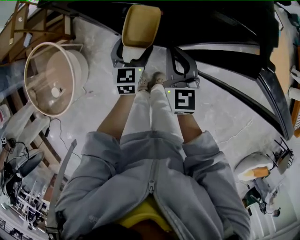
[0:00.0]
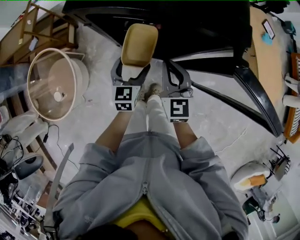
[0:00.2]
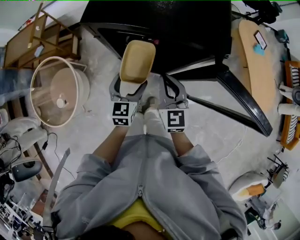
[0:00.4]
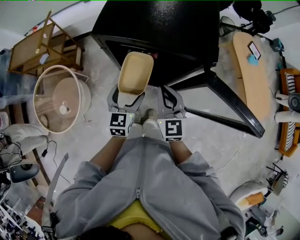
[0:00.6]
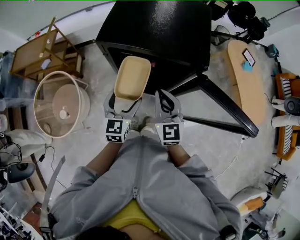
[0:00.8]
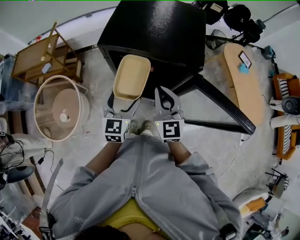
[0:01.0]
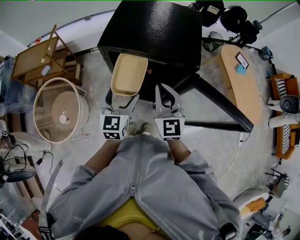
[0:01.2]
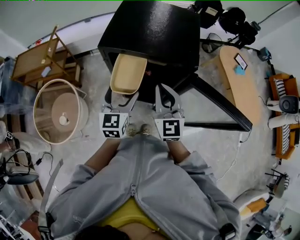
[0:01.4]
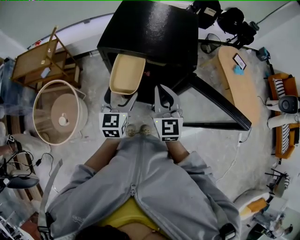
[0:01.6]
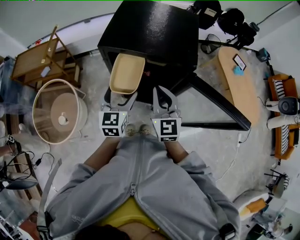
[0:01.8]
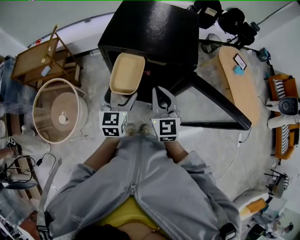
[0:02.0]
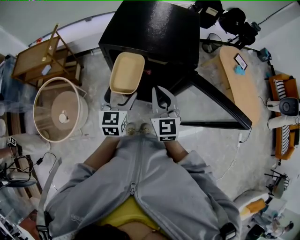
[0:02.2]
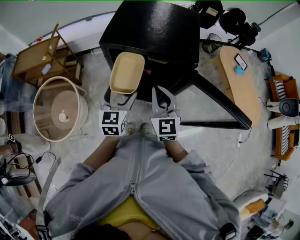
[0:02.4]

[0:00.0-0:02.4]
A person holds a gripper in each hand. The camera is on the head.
0:00.0 to 0:01.2: The grippers both shift upward by approximately 25 cm.
0:01.2 to 0:02.4: The grippers stay close to where they were, moving slightly.

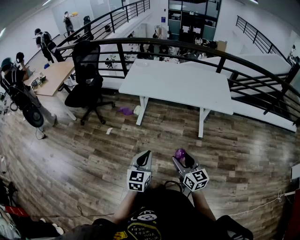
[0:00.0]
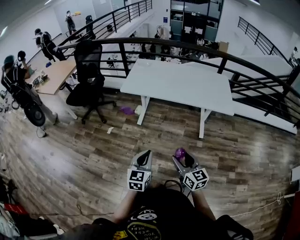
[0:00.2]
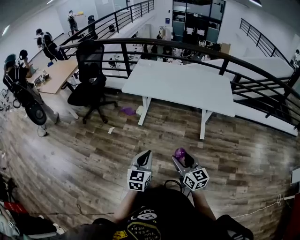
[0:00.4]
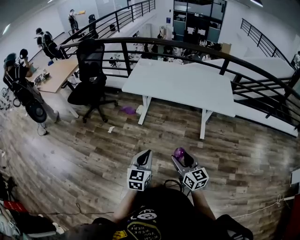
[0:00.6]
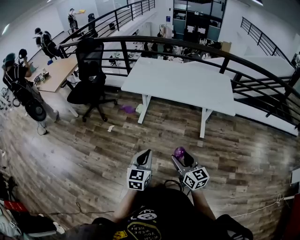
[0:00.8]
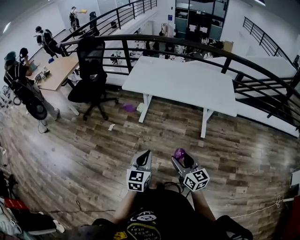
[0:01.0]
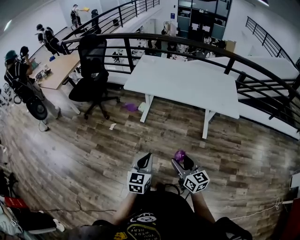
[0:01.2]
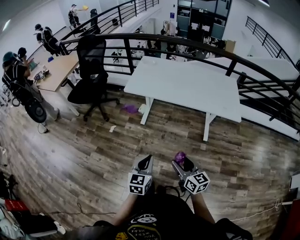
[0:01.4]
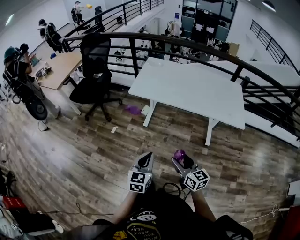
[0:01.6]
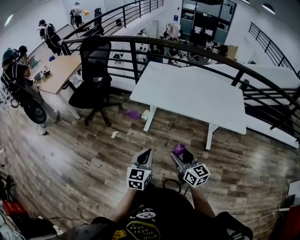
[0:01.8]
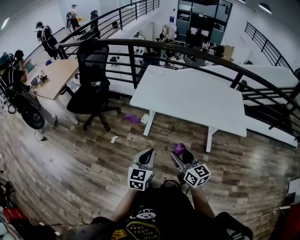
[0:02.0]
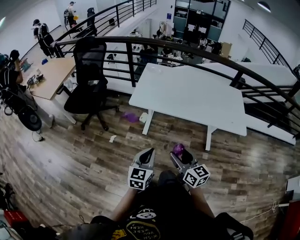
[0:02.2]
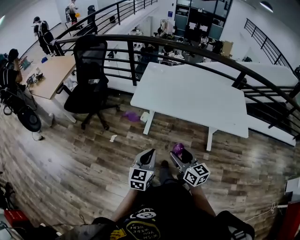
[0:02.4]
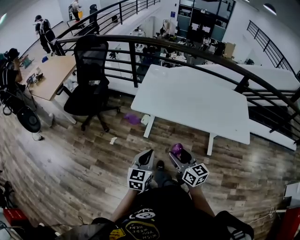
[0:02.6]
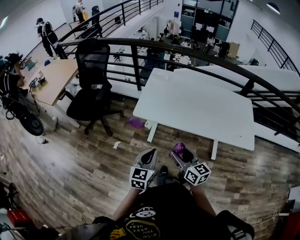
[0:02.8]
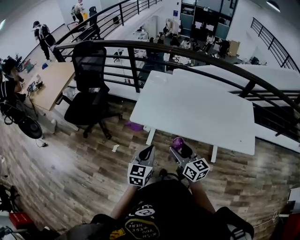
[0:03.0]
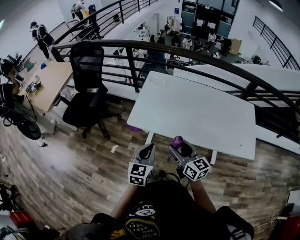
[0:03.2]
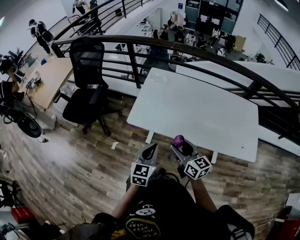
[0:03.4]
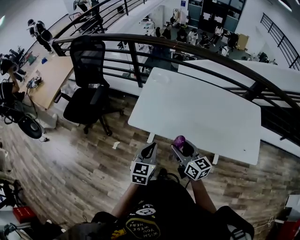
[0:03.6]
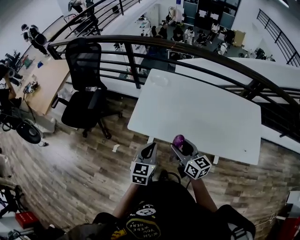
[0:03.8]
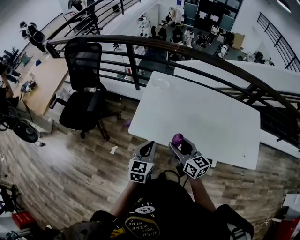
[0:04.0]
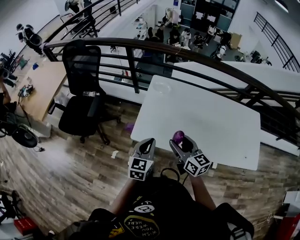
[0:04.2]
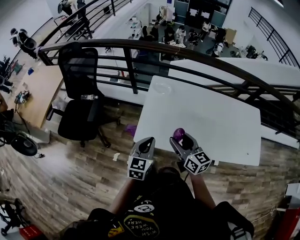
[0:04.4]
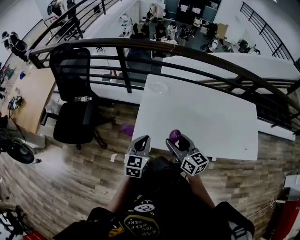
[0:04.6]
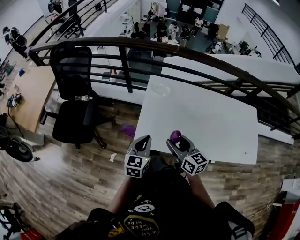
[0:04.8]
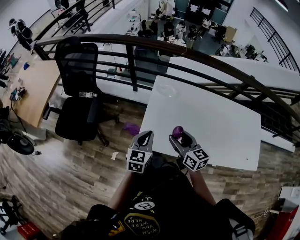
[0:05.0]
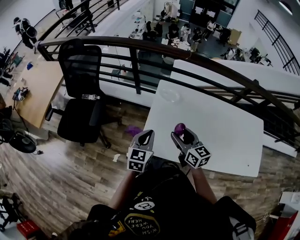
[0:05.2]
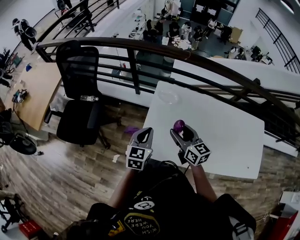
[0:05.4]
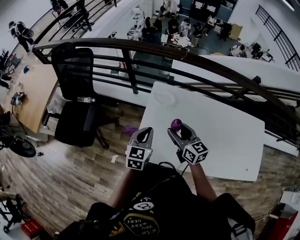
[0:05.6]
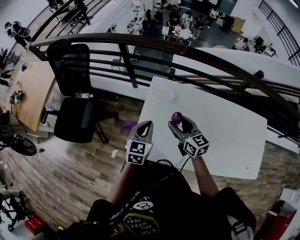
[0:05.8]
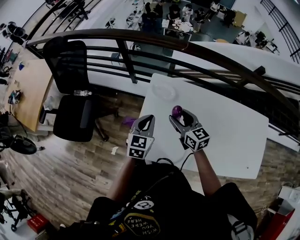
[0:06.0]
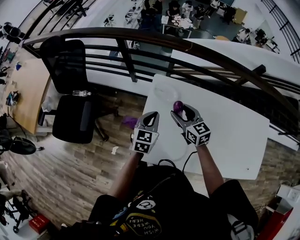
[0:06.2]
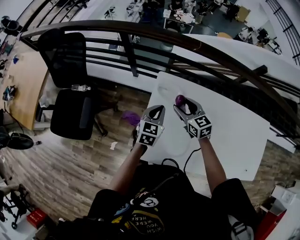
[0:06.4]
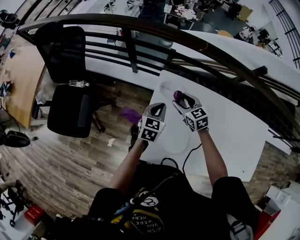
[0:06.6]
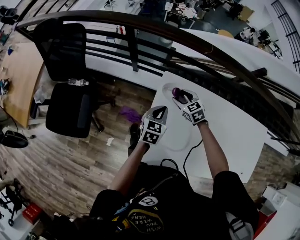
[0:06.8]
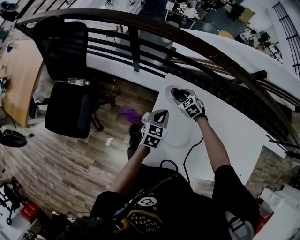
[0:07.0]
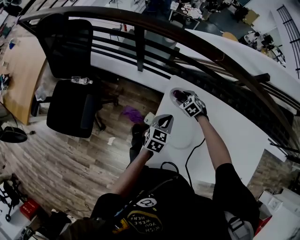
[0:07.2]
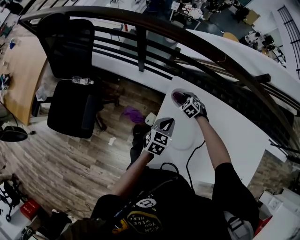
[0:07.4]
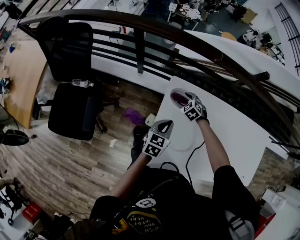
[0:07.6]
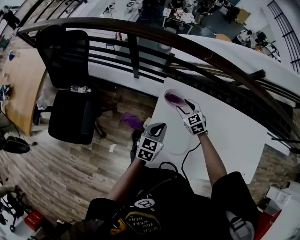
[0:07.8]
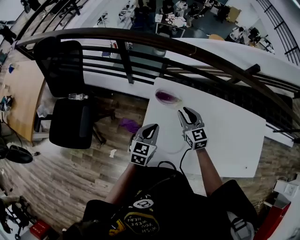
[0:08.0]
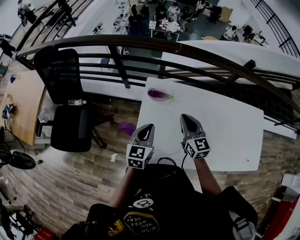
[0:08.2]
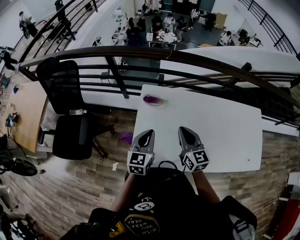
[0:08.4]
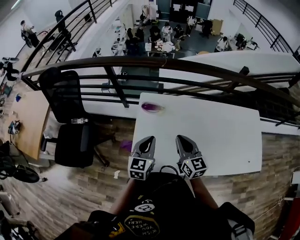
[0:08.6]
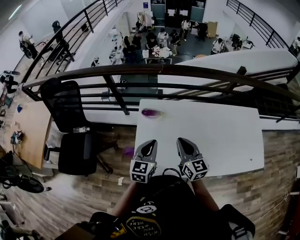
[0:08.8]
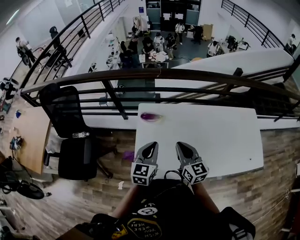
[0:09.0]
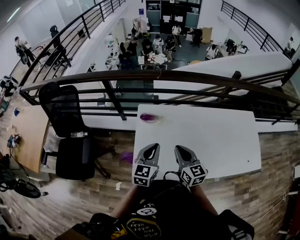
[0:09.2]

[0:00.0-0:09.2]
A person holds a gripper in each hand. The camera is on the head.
0:00.0 to 0:01.6: The grippers both shift forward and to the left by approximately 15 cm.
0:01.6 to 0:03.0: The two grippers go about 35 cm forward.
0:03.0 to 0:04.6: Both grippers move forward, roughly 25 cm.
0:04.6 to 0:06.2: Both grippers travel together forward, some 30 cm.
0:06.2 to 0:07.6: The left gripper moves downward, about 10 cm; the right gripper heads downward and forward, covering roughly 25 cm, and points its fingers about 40 degrees further downward.
0:07.6 to 0:09.2: The left gripper moves upward, backward and to the right, approximately 25 cm, and turns by approximately 20 degrees; the right gripper heads upward, backward and to the right, covering roughly 50 cm, angles its fingers upward, by about 50 degrees, and closes.

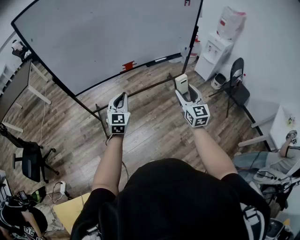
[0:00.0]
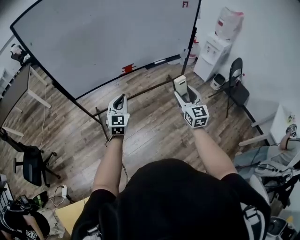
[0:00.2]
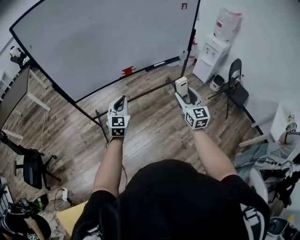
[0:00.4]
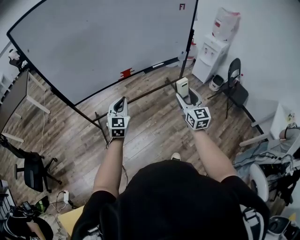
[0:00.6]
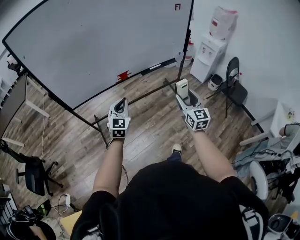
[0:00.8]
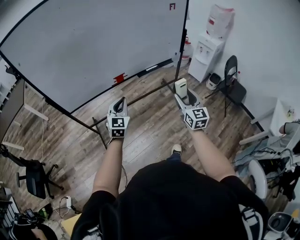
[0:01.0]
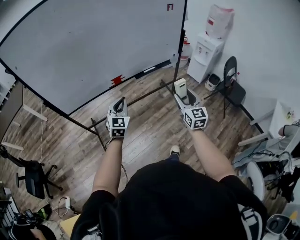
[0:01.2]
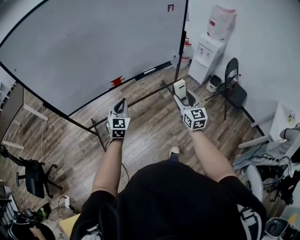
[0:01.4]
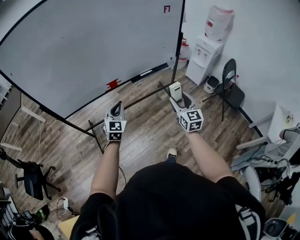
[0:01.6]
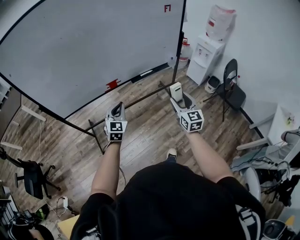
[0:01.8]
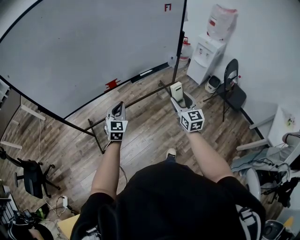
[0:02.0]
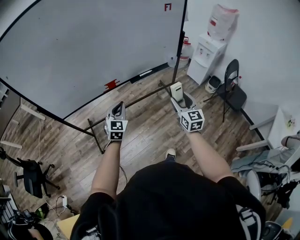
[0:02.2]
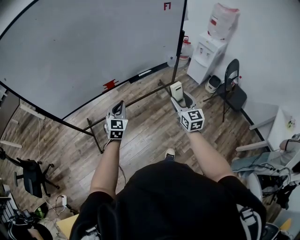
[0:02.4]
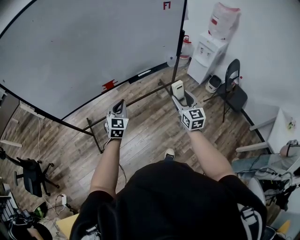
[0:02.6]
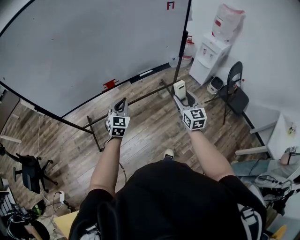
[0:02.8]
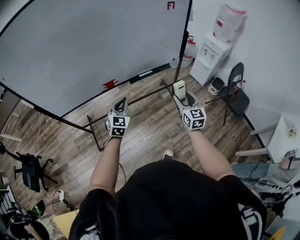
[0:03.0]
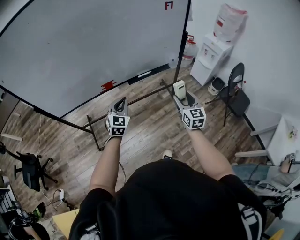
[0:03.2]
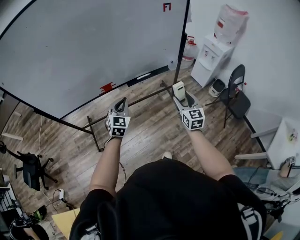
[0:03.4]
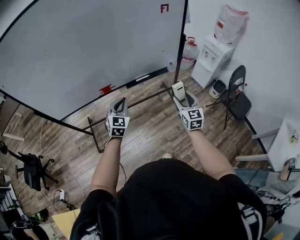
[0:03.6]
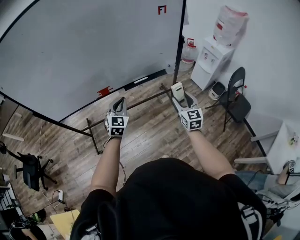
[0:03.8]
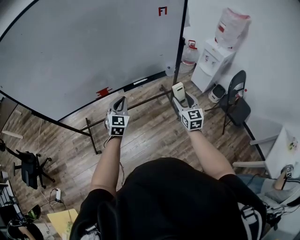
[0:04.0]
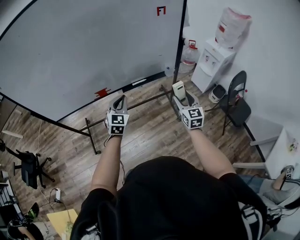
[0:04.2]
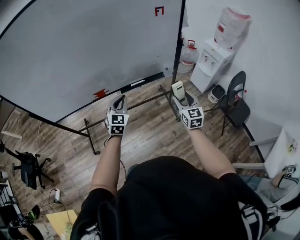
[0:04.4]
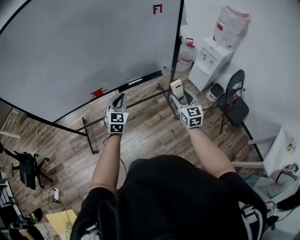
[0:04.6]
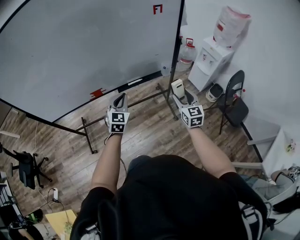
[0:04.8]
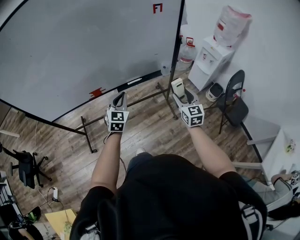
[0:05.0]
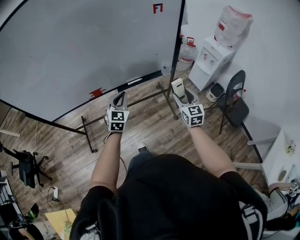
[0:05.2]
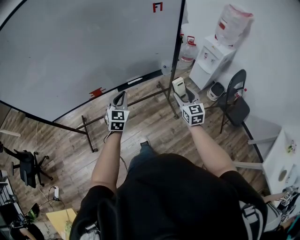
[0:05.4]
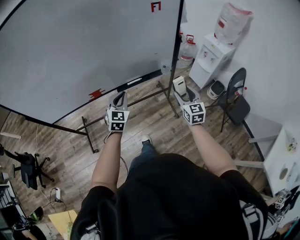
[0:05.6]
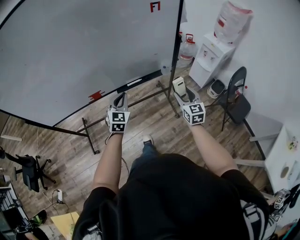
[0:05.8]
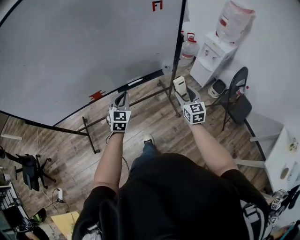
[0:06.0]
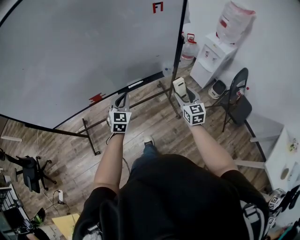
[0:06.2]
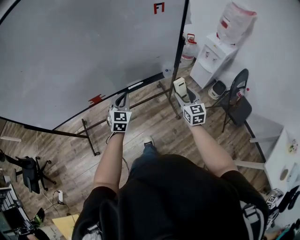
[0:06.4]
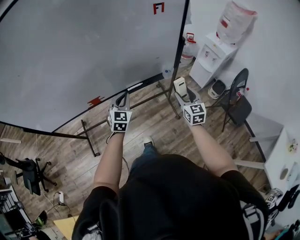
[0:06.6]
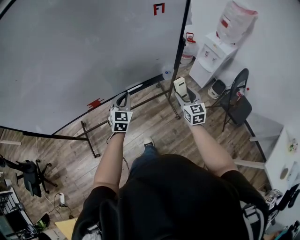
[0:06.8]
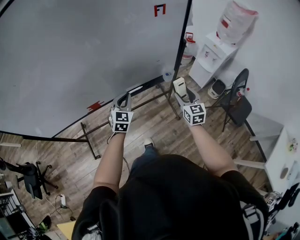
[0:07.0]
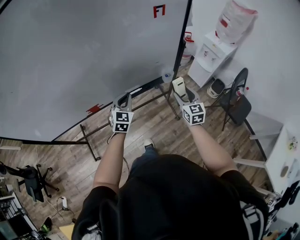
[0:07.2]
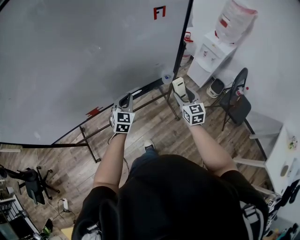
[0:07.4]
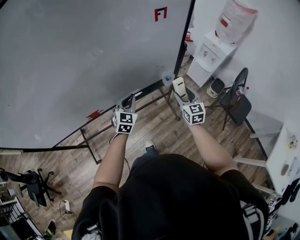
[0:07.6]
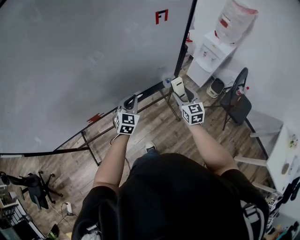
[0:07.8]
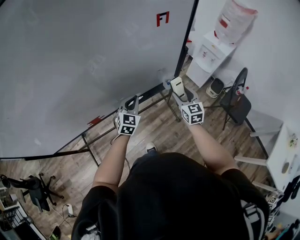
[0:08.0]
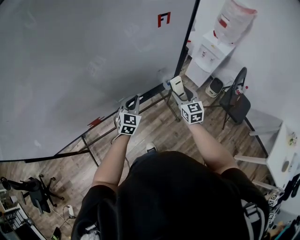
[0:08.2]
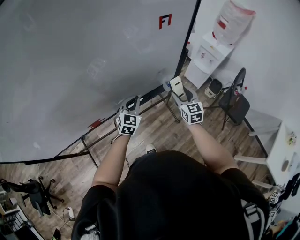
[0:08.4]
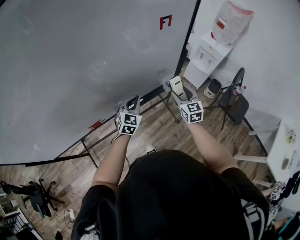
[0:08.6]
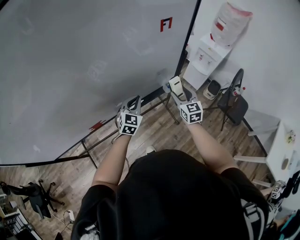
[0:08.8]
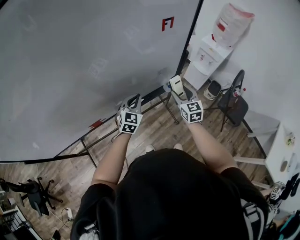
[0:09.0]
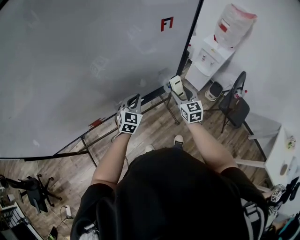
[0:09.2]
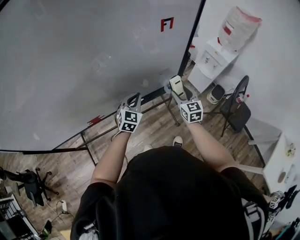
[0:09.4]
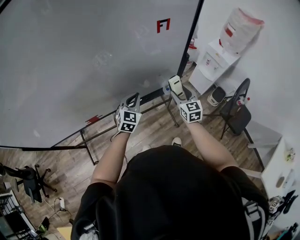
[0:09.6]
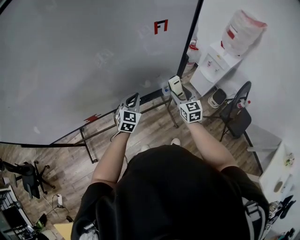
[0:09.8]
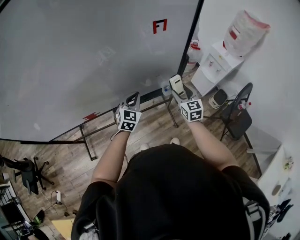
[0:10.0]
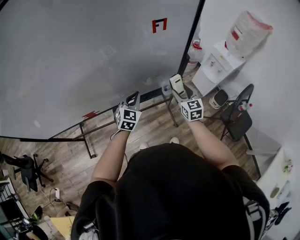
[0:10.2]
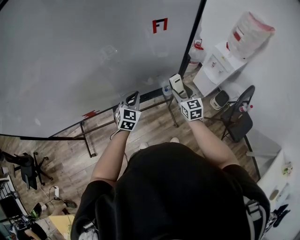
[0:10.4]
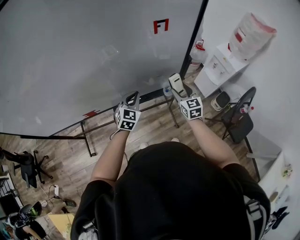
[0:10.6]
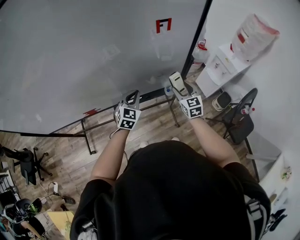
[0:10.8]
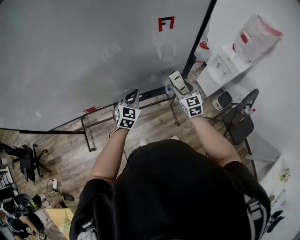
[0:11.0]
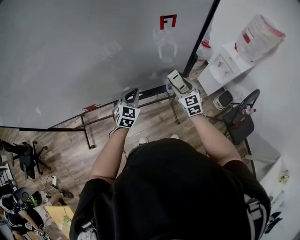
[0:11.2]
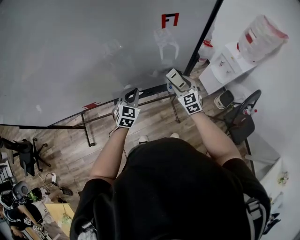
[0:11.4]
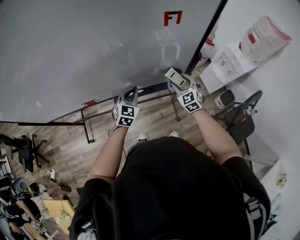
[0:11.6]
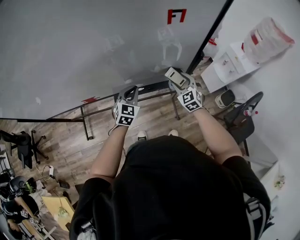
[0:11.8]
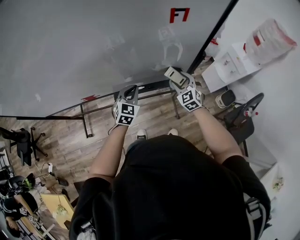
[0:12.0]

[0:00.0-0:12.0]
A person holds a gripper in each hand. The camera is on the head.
0:00.0 to 0:01.6: Both grippers travel together forward and to the right, approximately 15 cm.
0:01.6 to 0:03.0: Both grippers travel together forward and to the right, roughly 10 cm.
0:03.0 to 0:04.4: The left gripper heads to the right and forward, covering some 10 cm; the right gripper heads forward and to the right, covering roughly 15 cm.
0:04.4 to 0:06.0: The grippers both shift forward by some 5 cm.
0:06.0 to 0:07.6: The two grippers go approximately 10 cm forward.
0:07.6 to 0:09.0: The right gripper moves roughly 5 cm.
0:09.0 to 0:10.4: The right gripper shifts some 5 cm forward.
0:10.4 to 0:12.0: The left gripper moves about 5 cm. Meanwhile the right gripper goes roughly 10 cm downward and forward, and turns by about 40 degrees.
